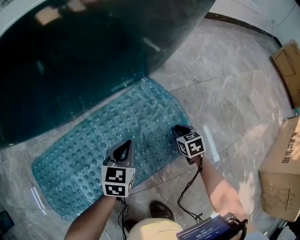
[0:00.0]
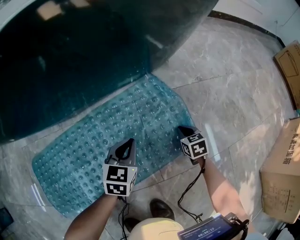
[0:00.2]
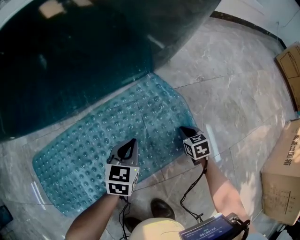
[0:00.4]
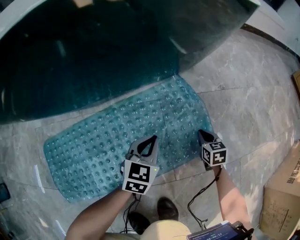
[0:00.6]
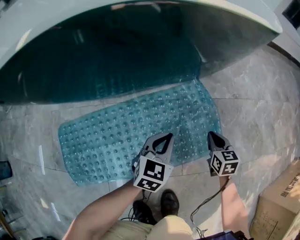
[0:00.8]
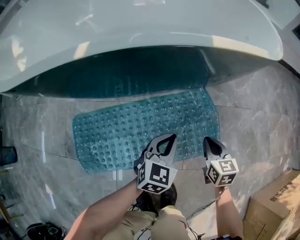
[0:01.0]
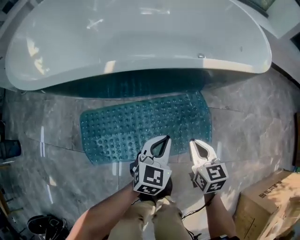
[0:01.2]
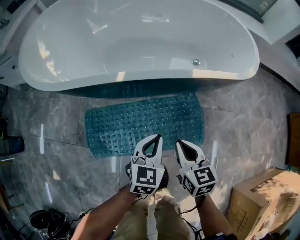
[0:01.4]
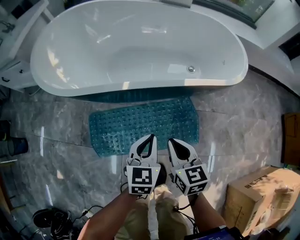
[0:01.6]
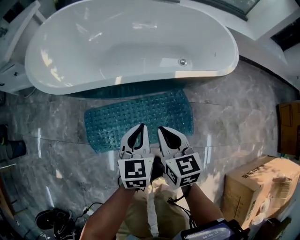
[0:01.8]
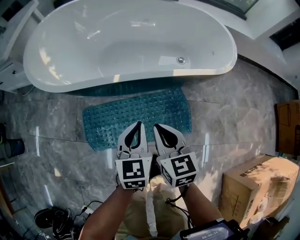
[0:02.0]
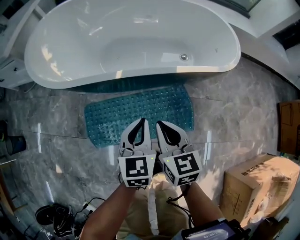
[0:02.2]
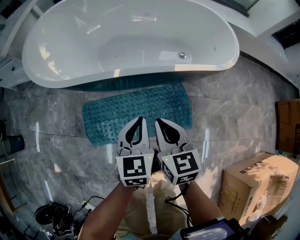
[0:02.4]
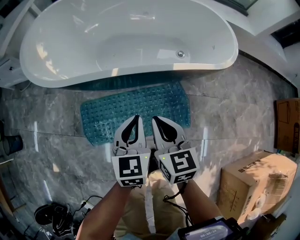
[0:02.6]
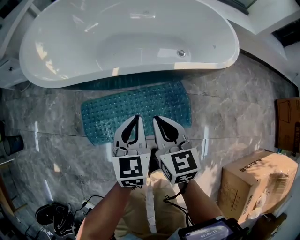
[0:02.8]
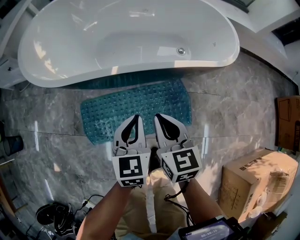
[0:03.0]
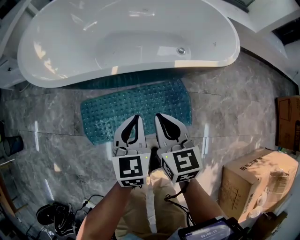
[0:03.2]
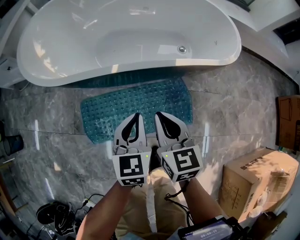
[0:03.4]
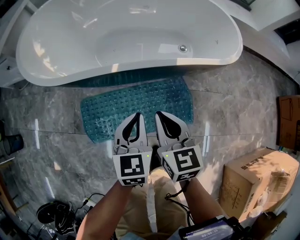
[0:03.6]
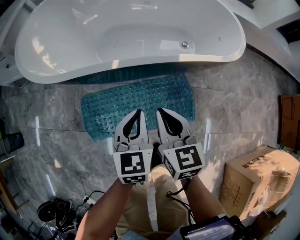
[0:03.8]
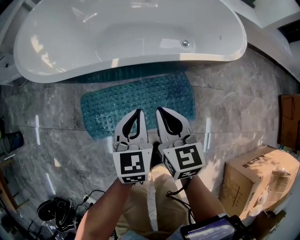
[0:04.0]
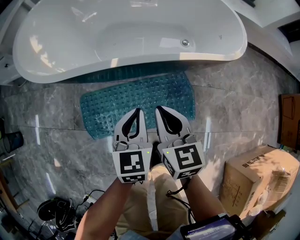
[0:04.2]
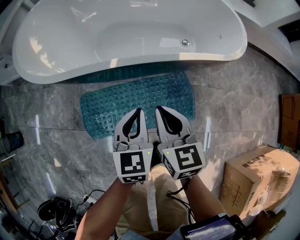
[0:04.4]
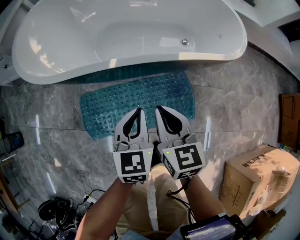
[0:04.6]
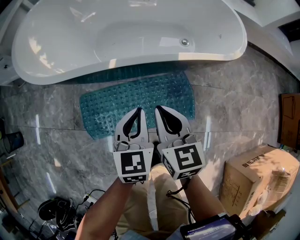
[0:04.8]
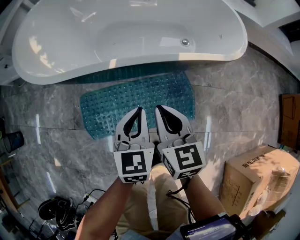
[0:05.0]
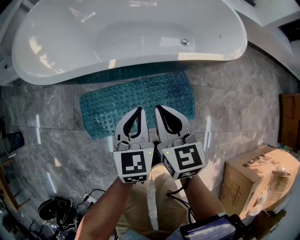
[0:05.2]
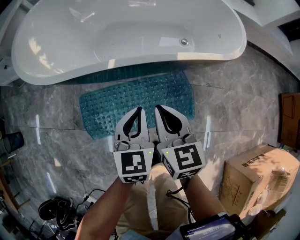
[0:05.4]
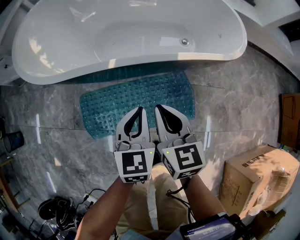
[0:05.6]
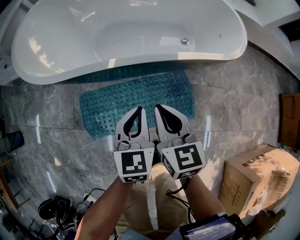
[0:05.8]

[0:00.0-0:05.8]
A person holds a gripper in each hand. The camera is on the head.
0:00.0 to 0:01.4: The right gripper travels upward and to the left by roughly 60 cm, and changes its angle by approximately 30 degrees. Meanwhile the left gripper goes some 40 cm upward.
0:01.4 to 0:02.8: Both grippers move upward, approximately 15 cm.
0:02.8 to 0:04.4: The grippers make only small movements.
0:04.4 to 0:05.8: The two grippers keep their place.

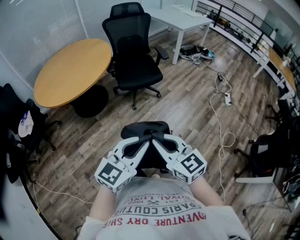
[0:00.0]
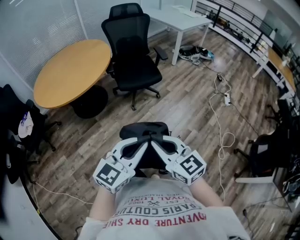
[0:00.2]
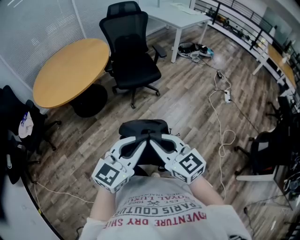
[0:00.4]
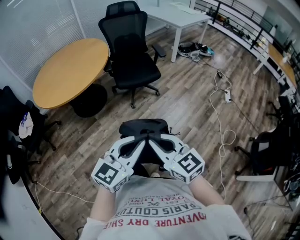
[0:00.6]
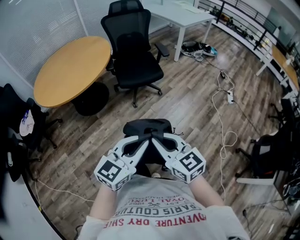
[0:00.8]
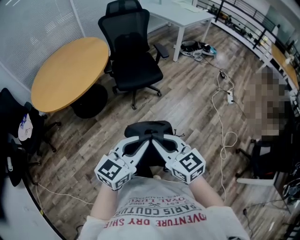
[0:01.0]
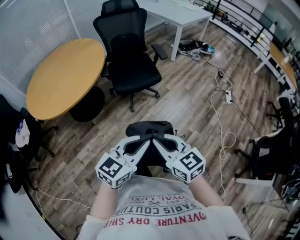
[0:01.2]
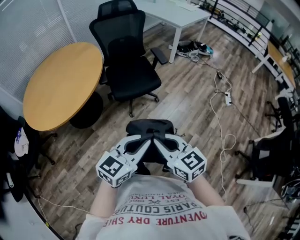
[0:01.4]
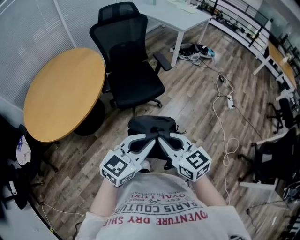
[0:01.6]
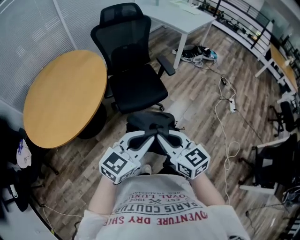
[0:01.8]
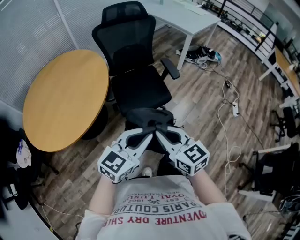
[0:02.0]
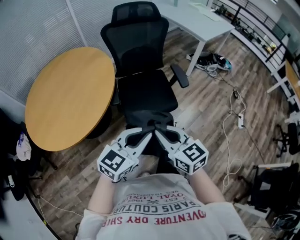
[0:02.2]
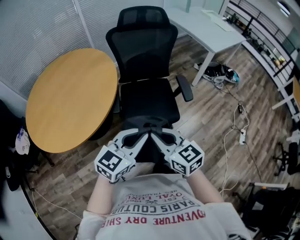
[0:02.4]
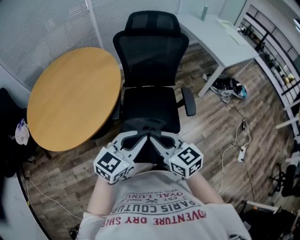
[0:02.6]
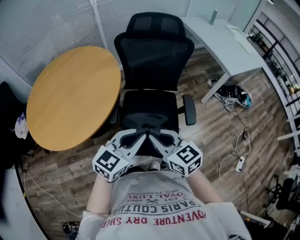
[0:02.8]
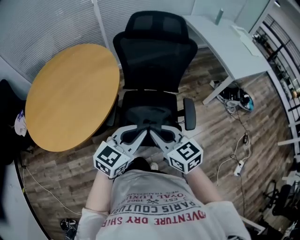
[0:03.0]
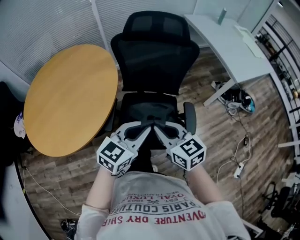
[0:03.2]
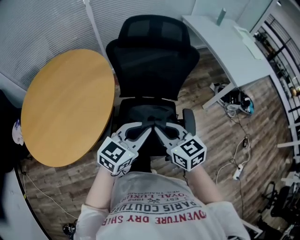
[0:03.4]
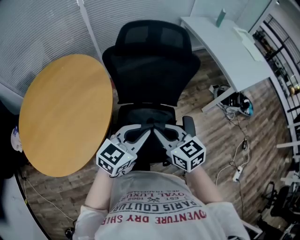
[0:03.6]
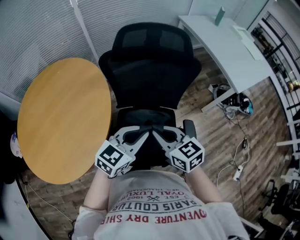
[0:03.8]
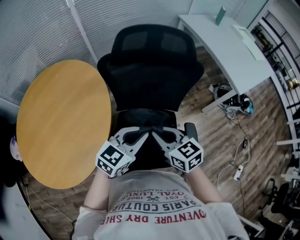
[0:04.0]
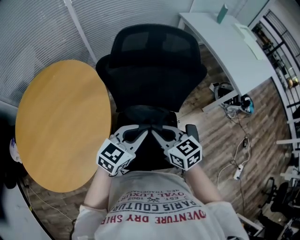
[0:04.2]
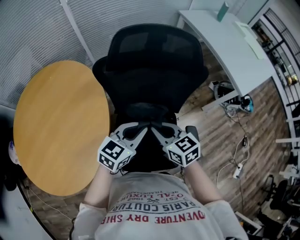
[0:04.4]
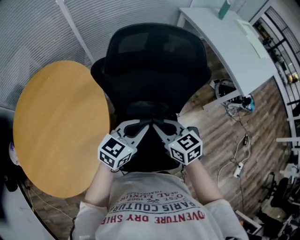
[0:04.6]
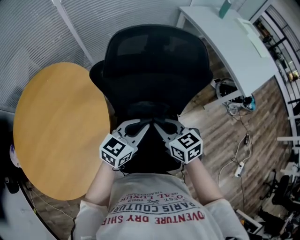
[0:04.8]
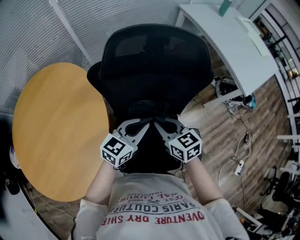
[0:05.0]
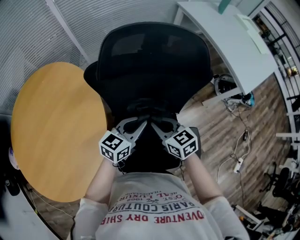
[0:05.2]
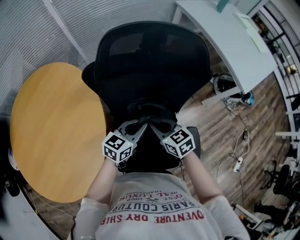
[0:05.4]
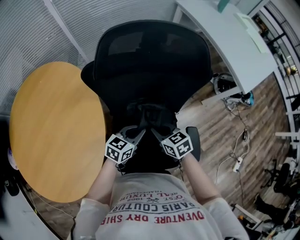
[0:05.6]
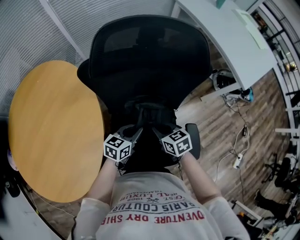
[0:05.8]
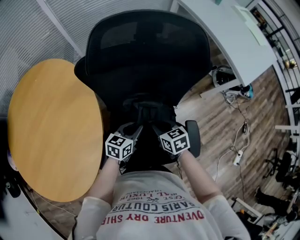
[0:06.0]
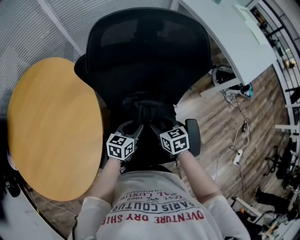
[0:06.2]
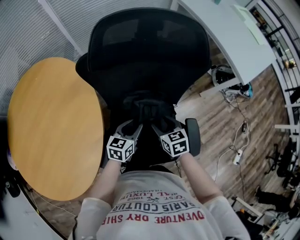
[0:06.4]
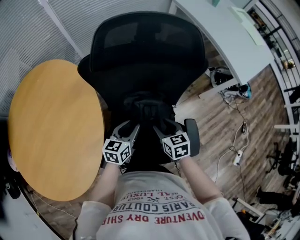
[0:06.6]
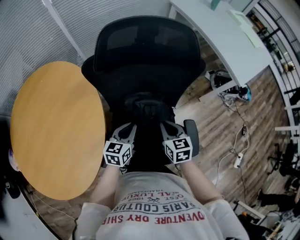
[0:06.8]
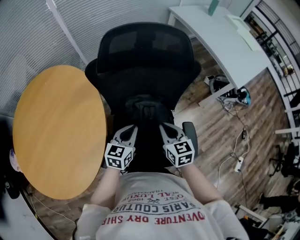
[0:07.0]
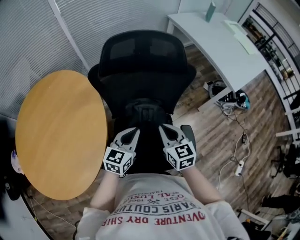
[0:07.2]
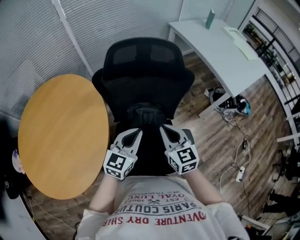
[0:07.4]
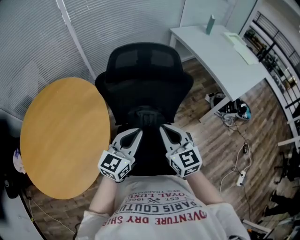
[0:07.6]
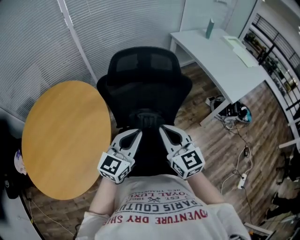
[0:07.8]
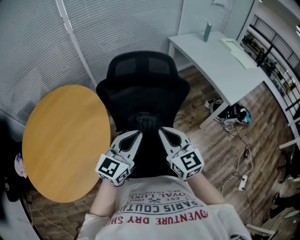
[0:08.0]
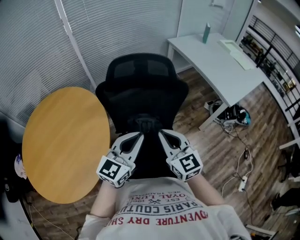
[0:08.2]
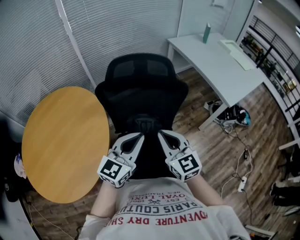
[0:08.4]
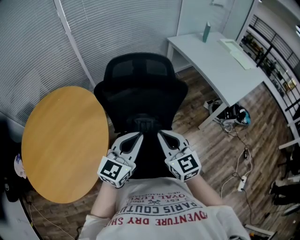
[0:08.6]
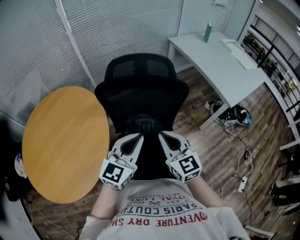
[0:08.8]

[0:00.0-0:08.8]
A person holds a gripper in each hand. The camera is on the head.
0:00.0 to 0:01.4: Both grippers move forward, roughly 20 cm.
0:01.4 to 0:03.0: The two grippers travel together, approximately 50 cm. The left gripper rotates some 30 degrees. Meanwhile the right gripper swivels about 30 degrees.
0:03.0 to 0:04.4: The grippers both shift forward by about 30 cm.
0:04.4 to 0:05.8: The two grippers go roughly 15 cm downward. The left gripper turns by approximately 20 degrees.
0:05.8 to 0:07.4: Both grippers travel together upward, approximately 20 cm. The left gripper rotates about 30 degrees. Meanwhile the right gripper changes its angle by approximately 30 degrees, and opens, then closes again.
0:07.4 to 0:08.8: Both grippers travel together upward, some 10 cm.

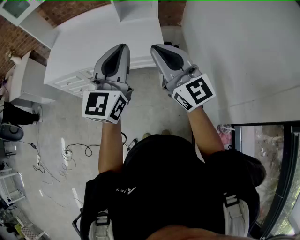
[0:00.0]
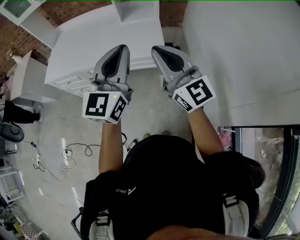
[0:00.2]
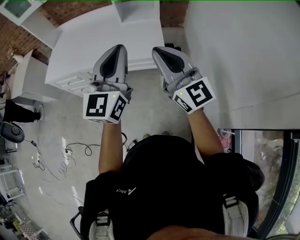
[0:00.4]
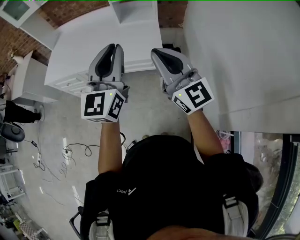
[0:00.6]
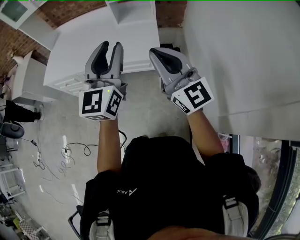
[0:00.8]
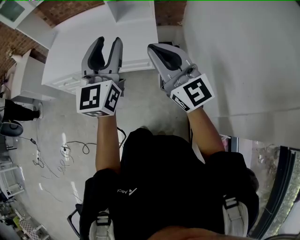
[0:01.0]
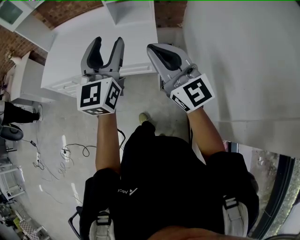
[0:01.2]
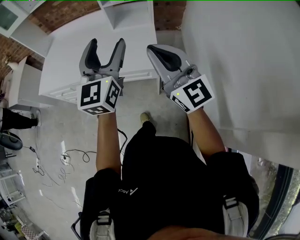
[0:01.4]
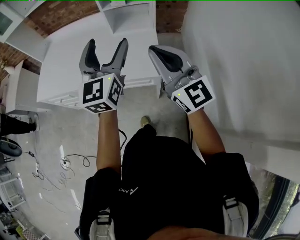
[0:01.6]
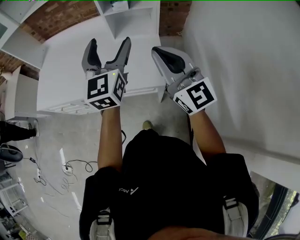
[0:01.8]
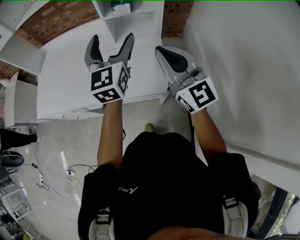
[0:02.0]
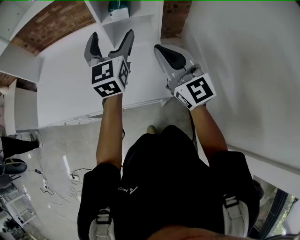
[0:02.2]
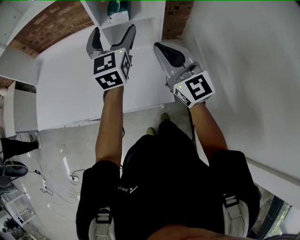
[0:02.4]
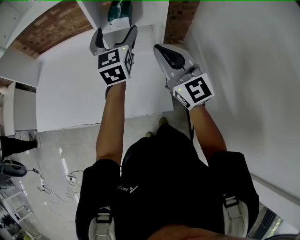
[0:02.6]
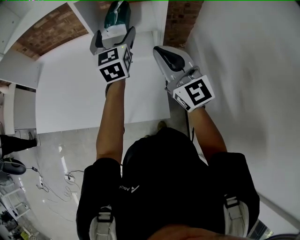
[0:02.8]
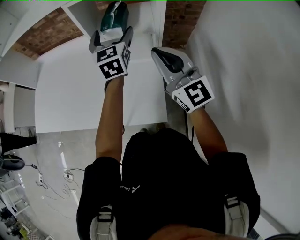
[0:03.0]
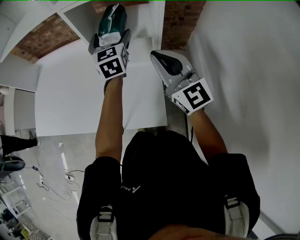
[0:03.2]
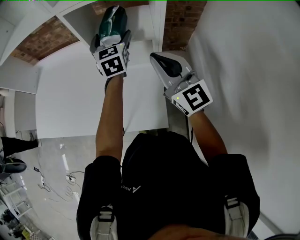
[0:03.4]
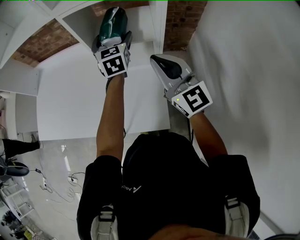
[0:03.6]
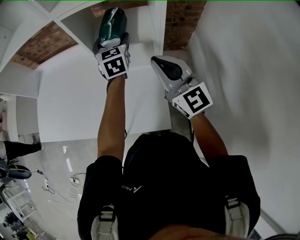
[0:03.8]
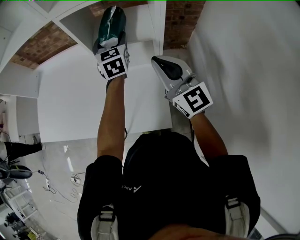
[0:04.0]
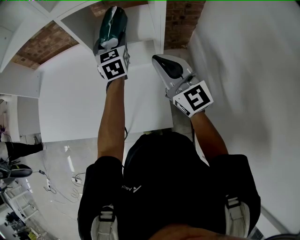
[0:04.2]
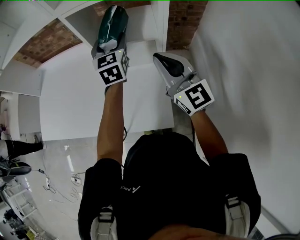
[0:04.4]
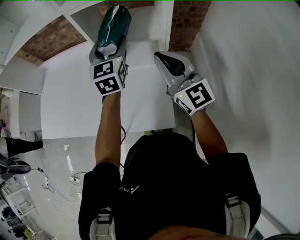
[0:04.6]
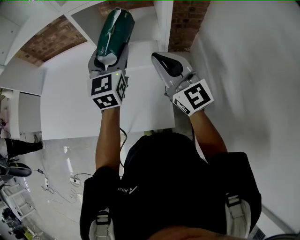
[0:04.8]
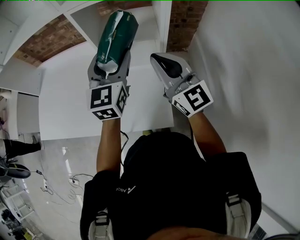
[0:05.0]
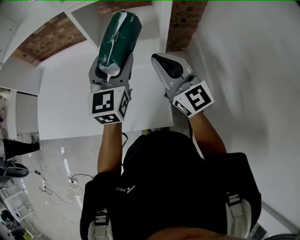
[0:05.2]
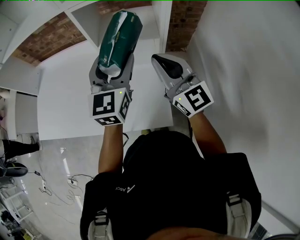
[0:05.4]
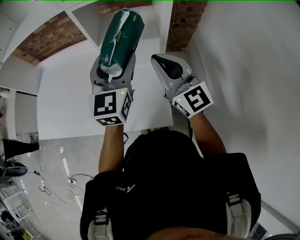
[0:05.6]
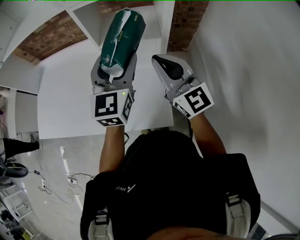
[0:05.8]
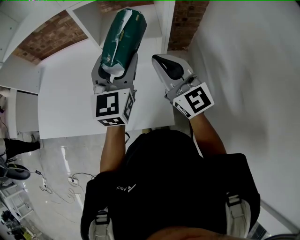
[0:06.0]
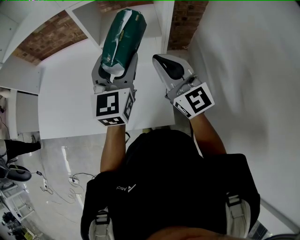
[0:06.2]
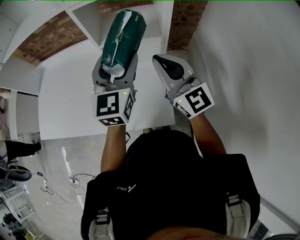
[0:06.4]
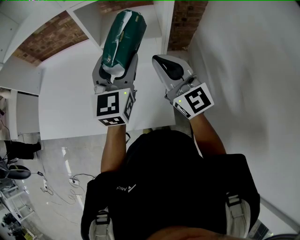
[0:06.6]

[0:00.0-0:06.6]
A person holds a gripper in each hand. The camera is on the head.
0:00.0 to 0:01.6: The two grippers go some 20 cm forward. The left gripper opens.
0:01.6 to 0:03.2: Both grippers move forward, roughly 35 cm. The left gripper rotates roughly 20 degrees.
0:03.2 to 0:05.0: The left gripper travels backward by approximately 10 cm, and closes.
0:05.0 to 0:06.6: The grippers move only a little.

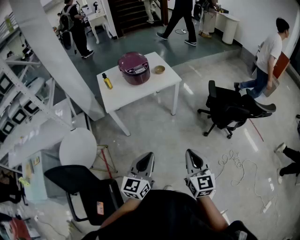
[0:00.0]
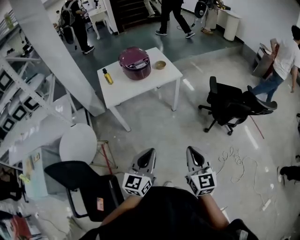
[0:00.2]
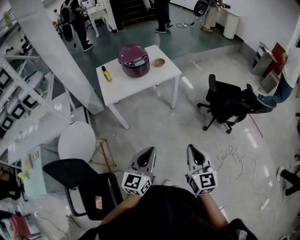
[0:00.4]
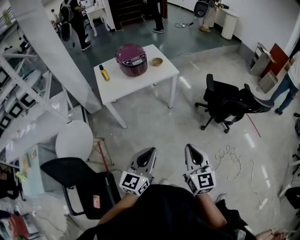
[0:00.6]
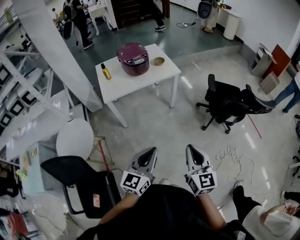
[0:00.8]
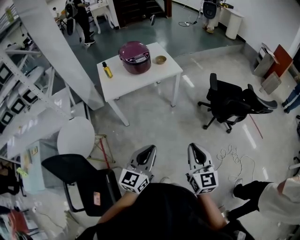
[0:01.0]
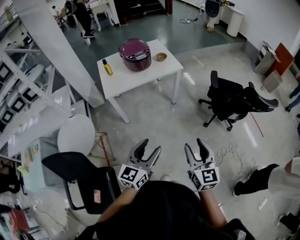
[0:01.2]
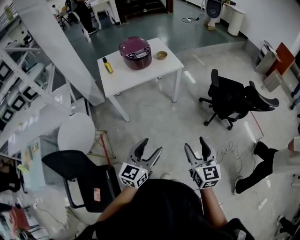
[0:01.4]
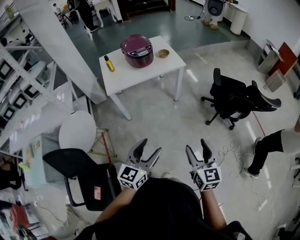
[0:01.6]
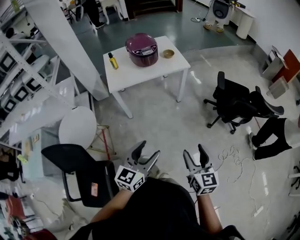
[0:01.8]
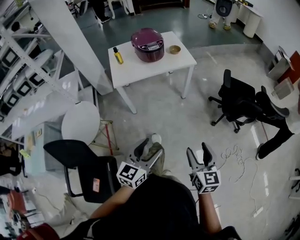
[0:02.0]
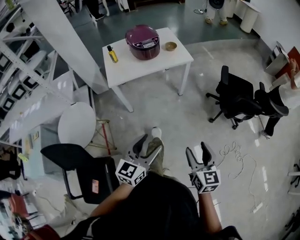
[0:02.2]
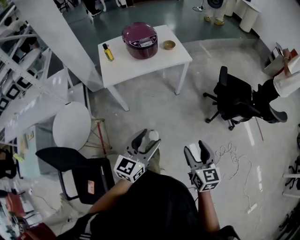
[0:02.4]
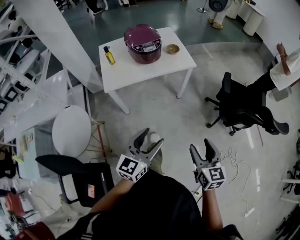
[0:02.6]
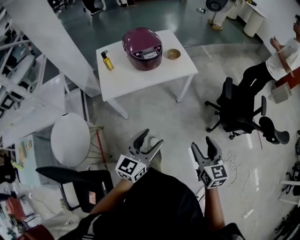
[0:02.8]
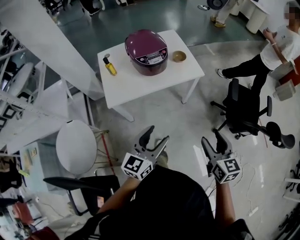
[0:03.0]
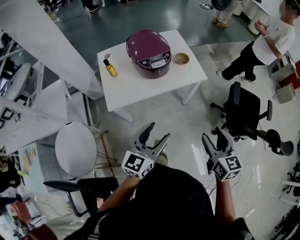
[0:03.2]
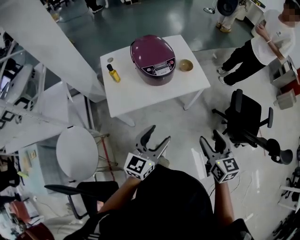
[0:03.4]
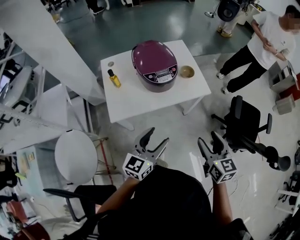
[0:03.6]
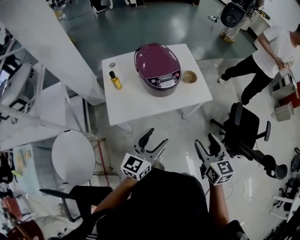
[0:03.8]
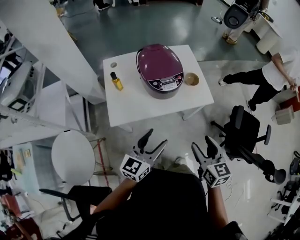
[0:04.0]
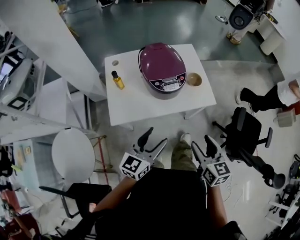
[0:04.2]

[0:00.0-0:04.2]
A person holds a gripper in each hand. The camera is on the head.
0:00.0 to 0:01.4: The left gripper opens up. The right gripper opens up.
0:01.4 to 0:02.8: The grippers both shift forward by roughly 20 cm.
0:02.8 to 0:04.2: The two grippers go roughly 25 cm forward and to the left.
